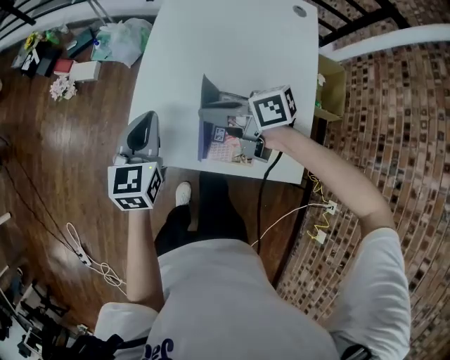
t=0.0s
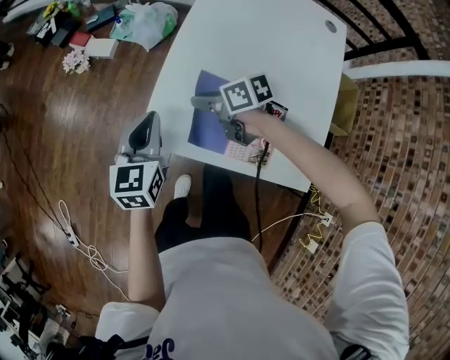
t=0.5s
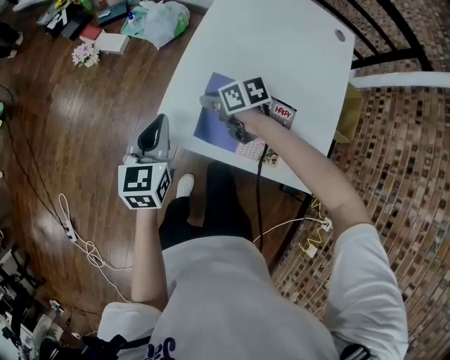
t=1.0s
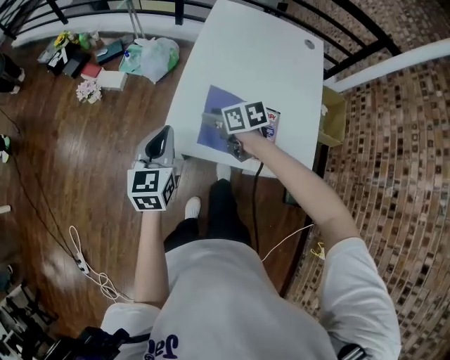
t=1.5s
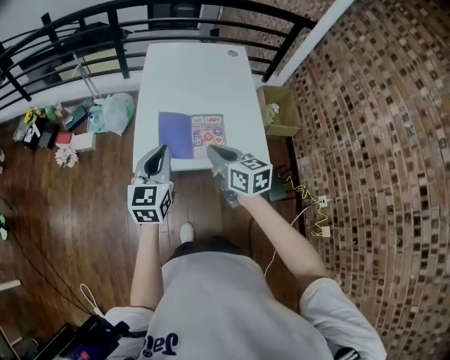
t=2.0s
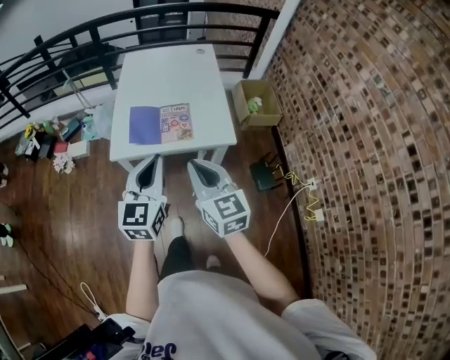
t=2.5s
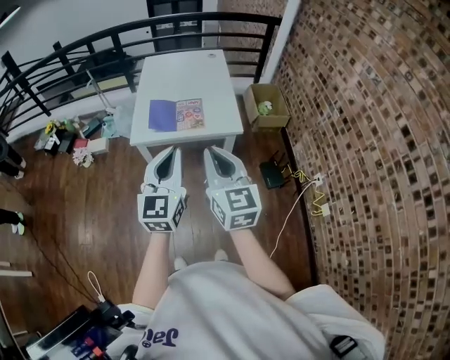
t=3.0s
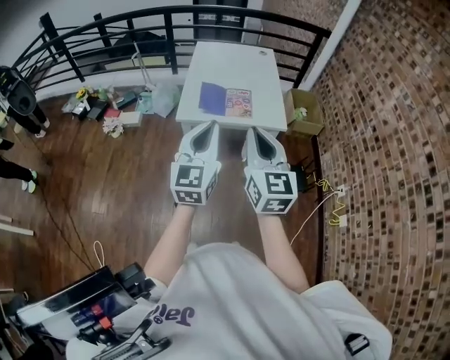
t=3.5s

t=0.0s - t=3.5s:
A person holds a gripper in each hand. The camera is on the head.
t=0.0s - t=2.0s: The left gripper ends up roughly 20 cm from where it was. The right gripper ends up approximately 20 cm from where it was, and rotates approximately 60 degrees.
t=2.0s - t=3.5s: The grippers both shift backward and upward by some 35 cm. The right gripper swivels approximately 40 degrees.

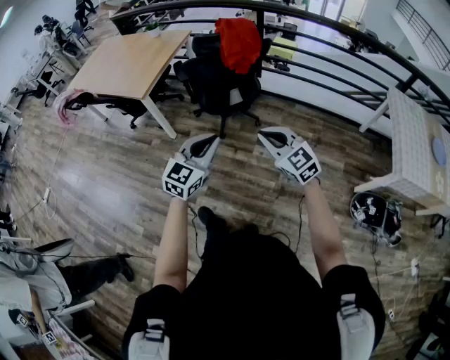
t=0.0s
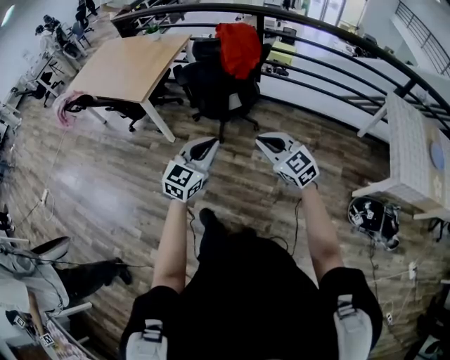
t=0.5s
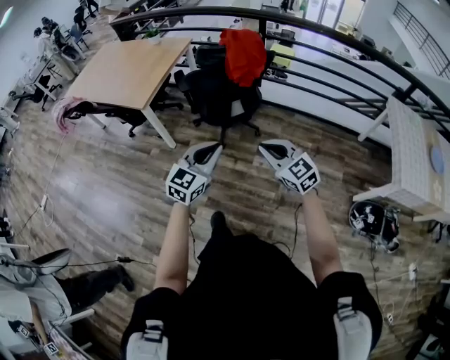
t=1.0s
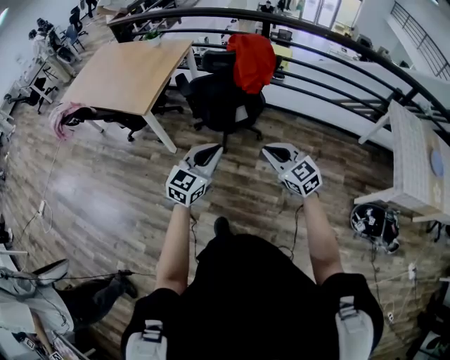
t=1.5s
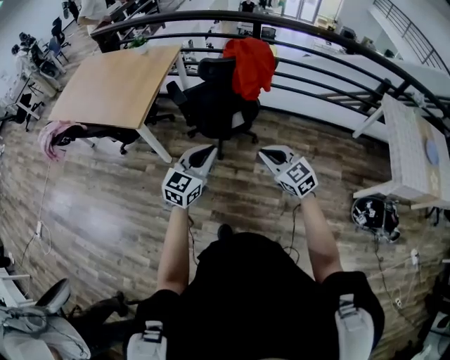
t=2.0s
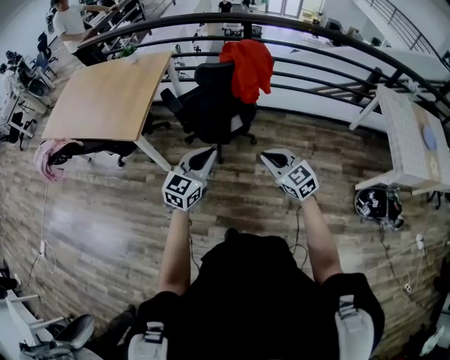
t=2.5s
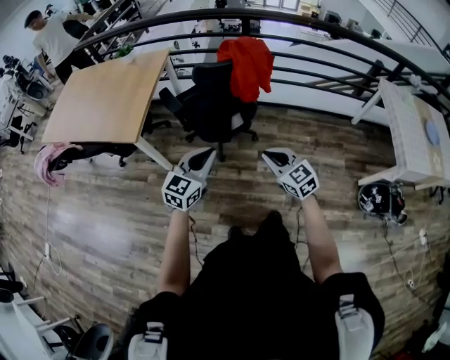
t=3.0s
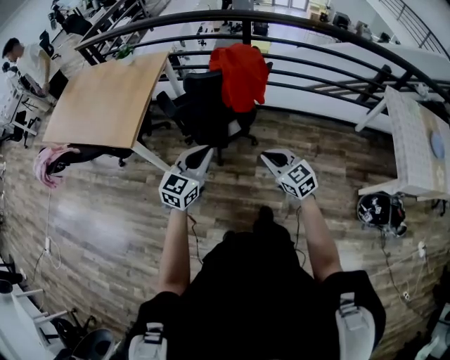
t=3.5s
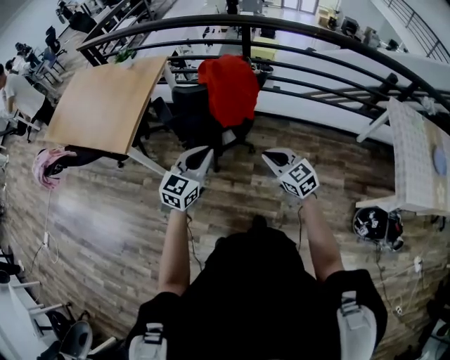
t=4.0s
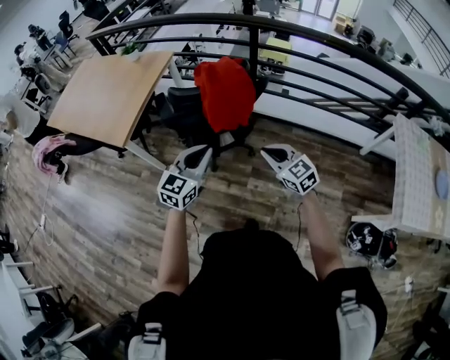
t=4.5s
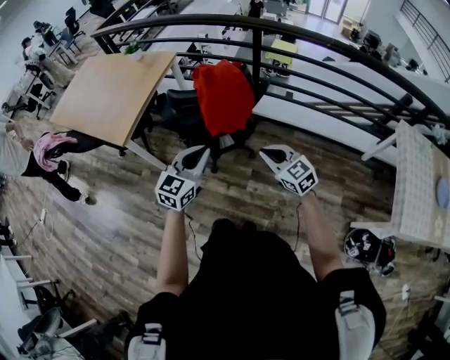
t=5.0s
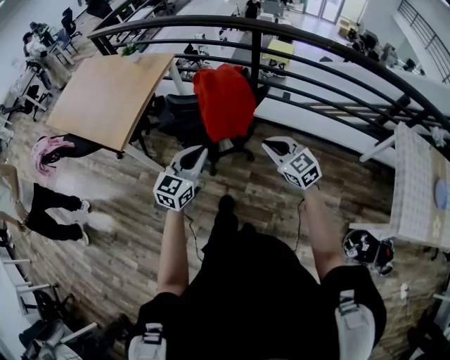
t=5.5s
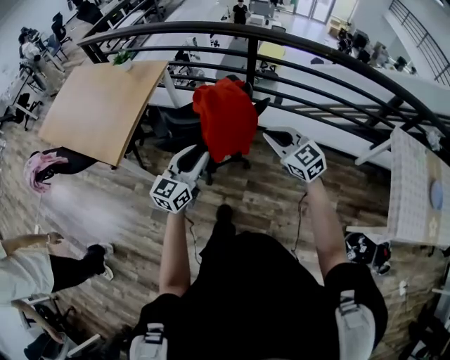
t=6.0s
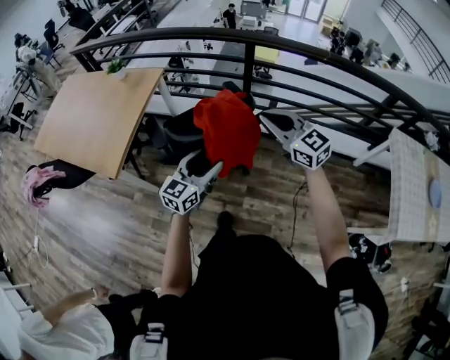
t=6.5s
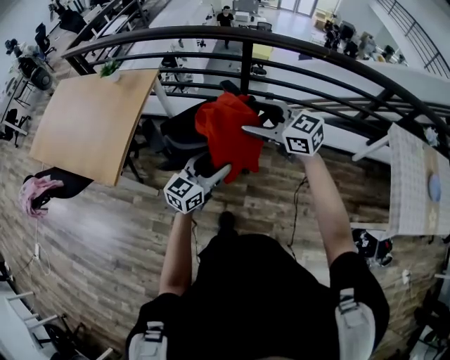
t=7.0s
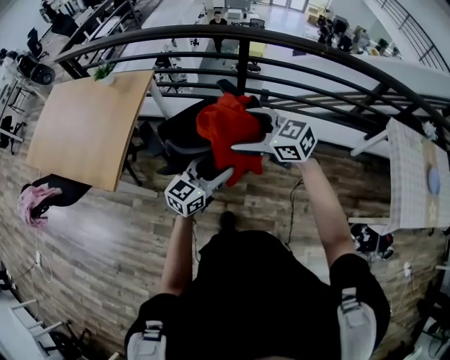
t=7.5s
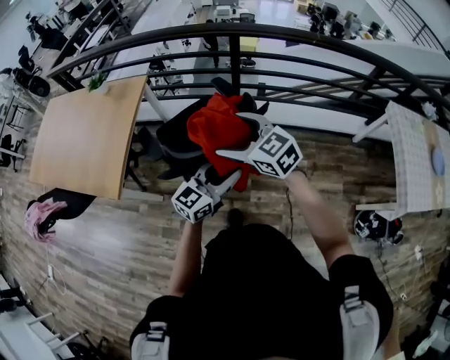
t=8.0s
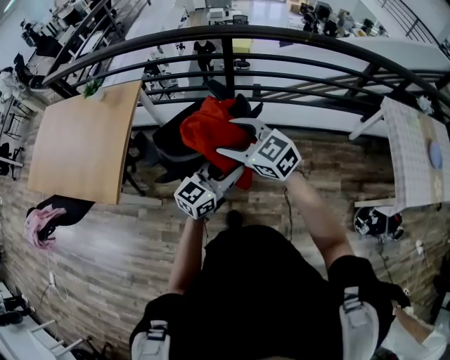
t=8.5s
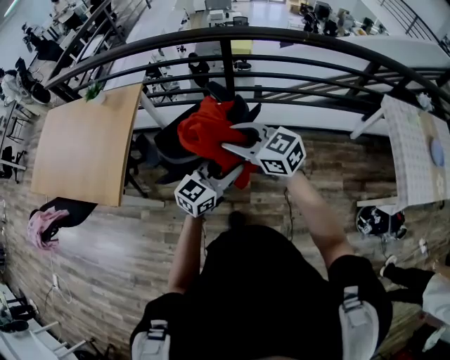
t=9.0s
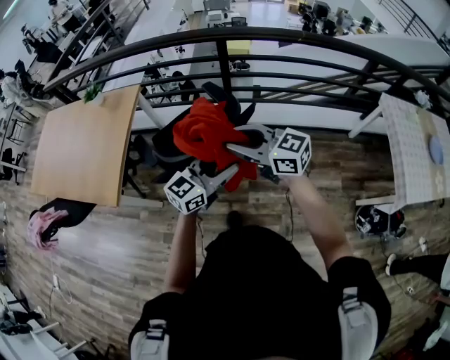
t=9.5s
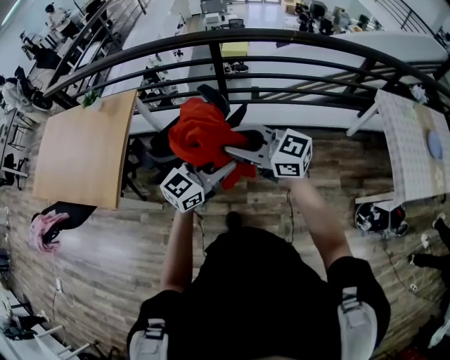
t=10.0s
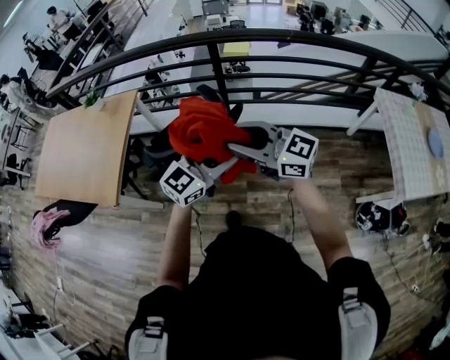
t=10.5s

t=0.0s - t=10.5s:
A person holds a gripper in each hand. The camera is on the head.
t=0.0s - t=2.0s: Both grippers travel together forward and to the left, approximately 20 cm.
t=2.0s - t=4.0s: The two grippers go about 20 cm forward and to the right.
t=4.0s - t=6.5s: The left gripper shifts some 15 cm forward, and opens its fingers; the right gripper shifts about 30 cm forward and upward.
t=6.5s - t=8.5s: The left gripper moves to the right, about 5 cm, turns by approximately 20 degrees, and closes its fingers, while the right gripper goes some 10 cm to the left, and opens up.
t=8.5s - t=10.5s: The right gripper heads to the right, upward and backward, covering some 15 cm, turns by some 30 degrees, and closes up; the left gripper heads upward and to the right, covering roughly 10 cm, and opens up.

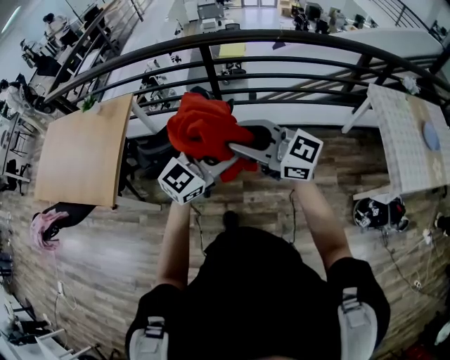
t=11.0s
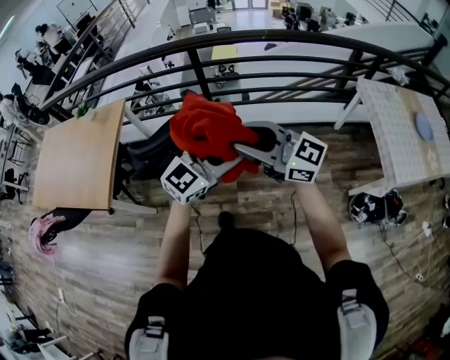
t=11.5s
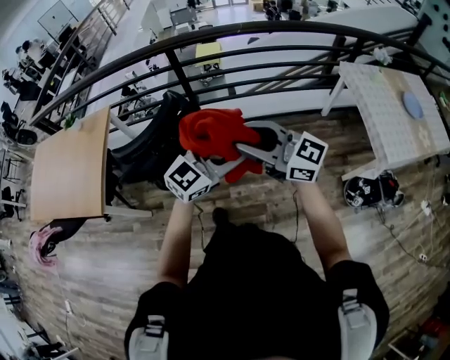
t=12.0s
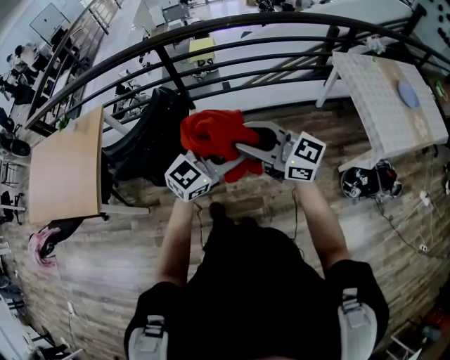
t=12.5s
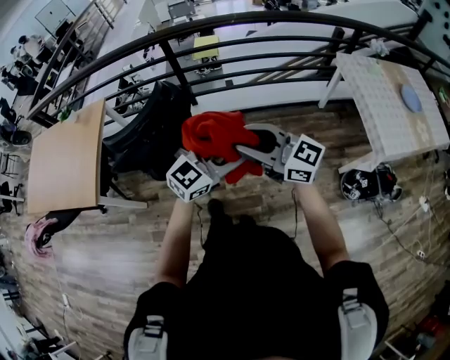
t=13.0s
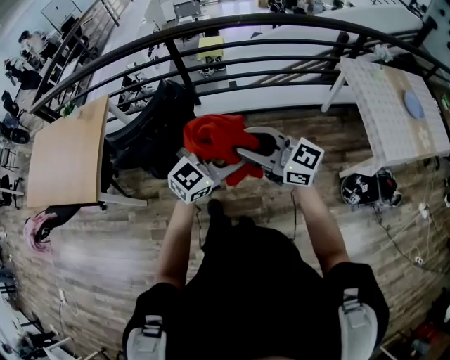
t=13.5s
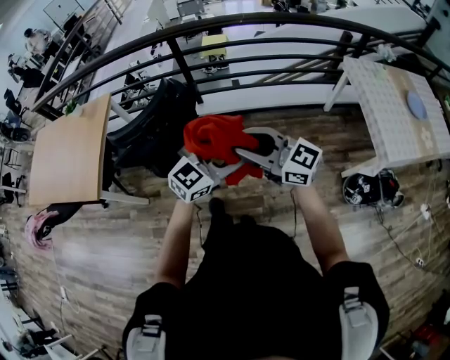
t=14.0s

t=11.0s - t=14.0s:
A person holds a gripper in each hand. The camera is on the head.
t=11.0s - t=12.5s: Both grippers move to the right and backward, some 20 cm.
t=12.5s - t=14.0s: There are only small adjustments of the grippers.

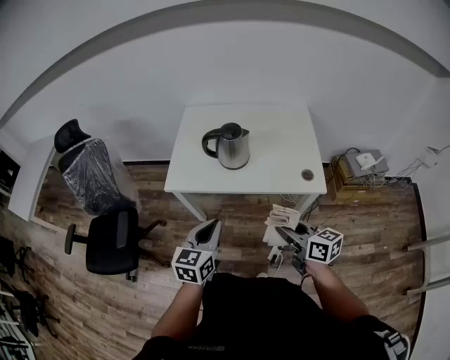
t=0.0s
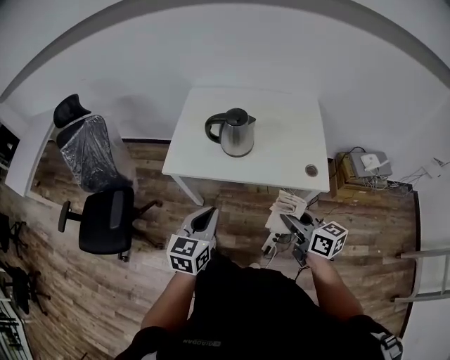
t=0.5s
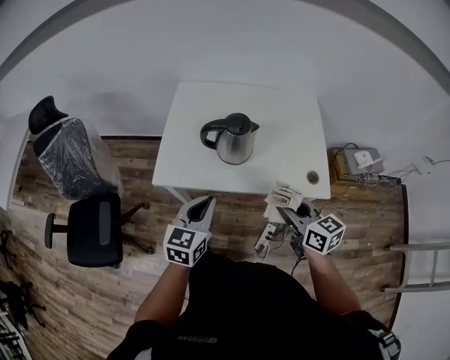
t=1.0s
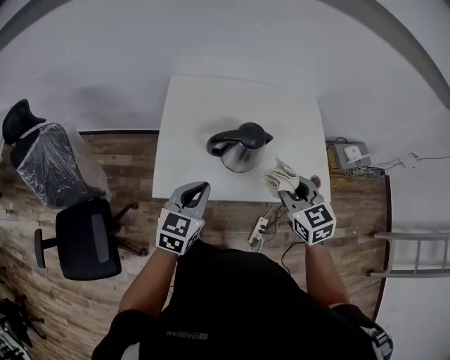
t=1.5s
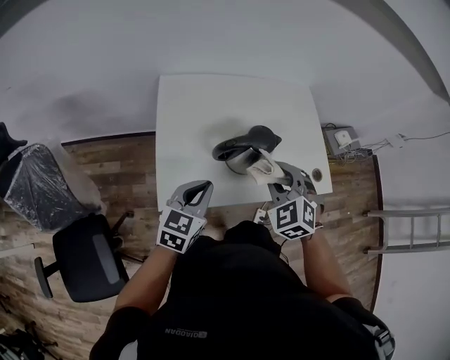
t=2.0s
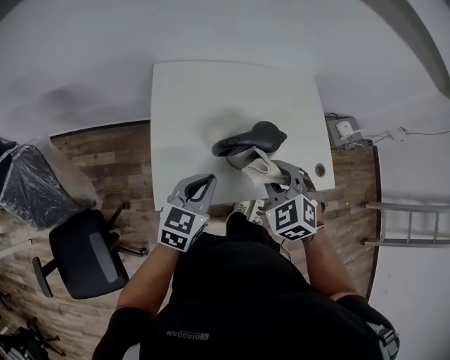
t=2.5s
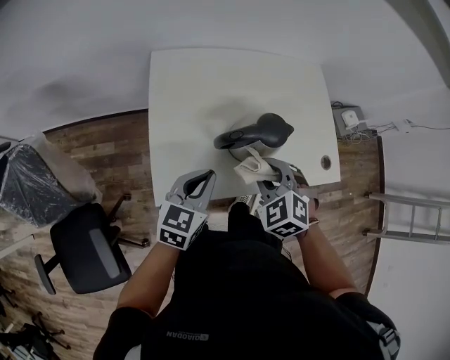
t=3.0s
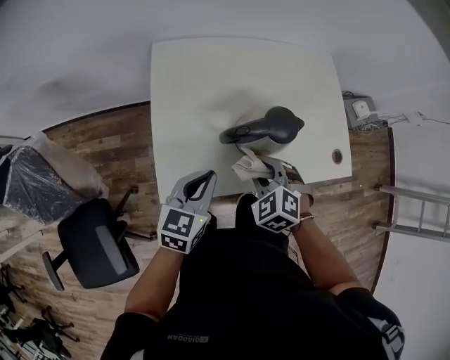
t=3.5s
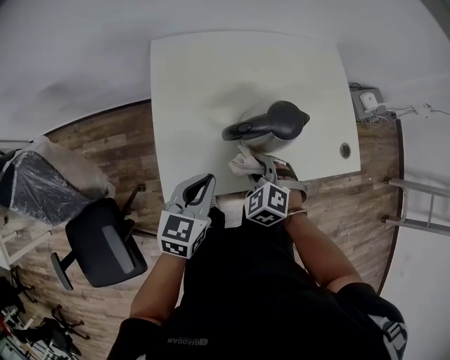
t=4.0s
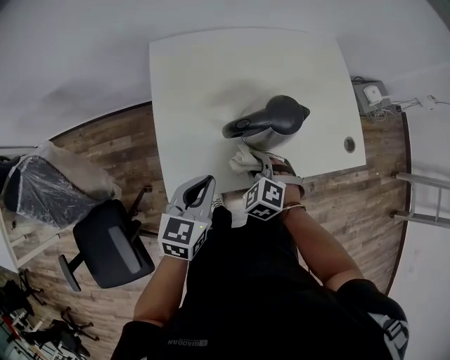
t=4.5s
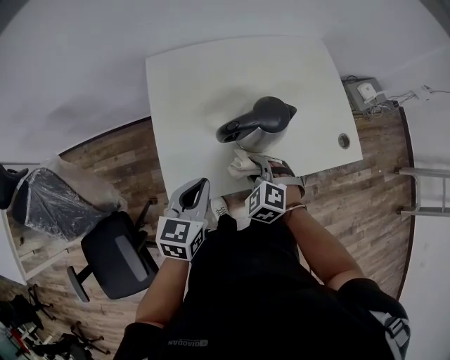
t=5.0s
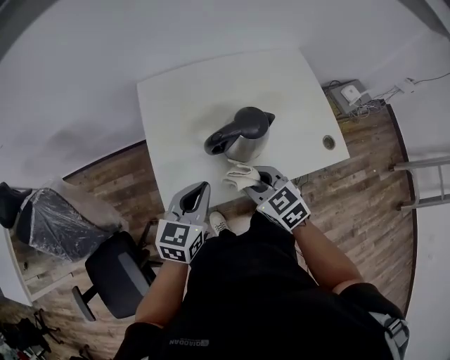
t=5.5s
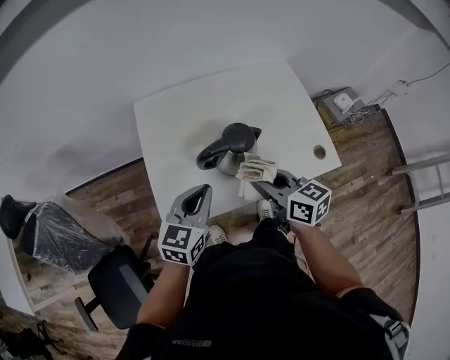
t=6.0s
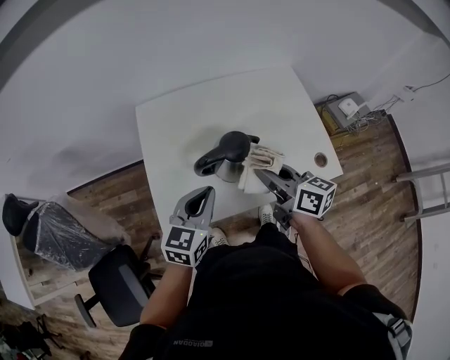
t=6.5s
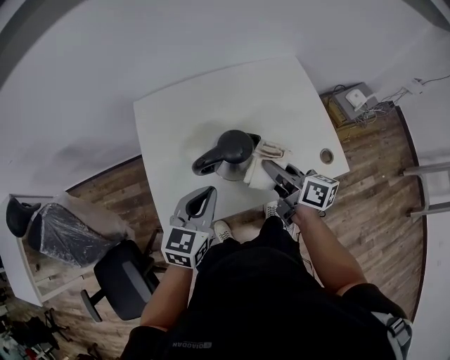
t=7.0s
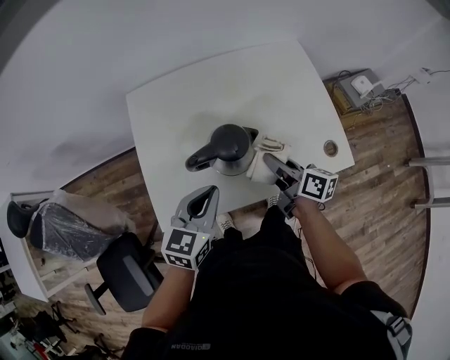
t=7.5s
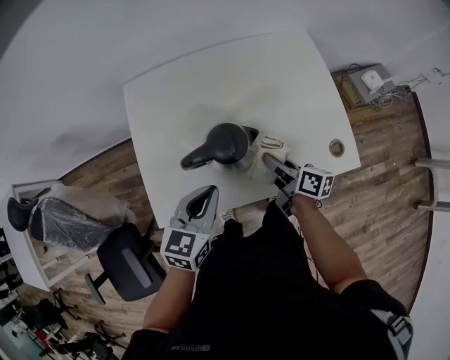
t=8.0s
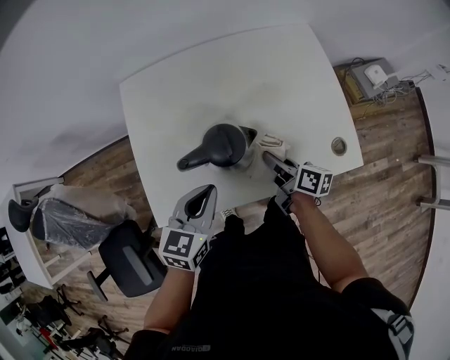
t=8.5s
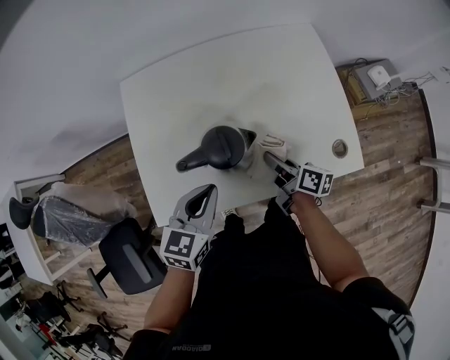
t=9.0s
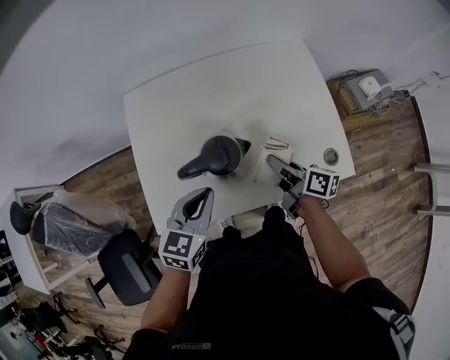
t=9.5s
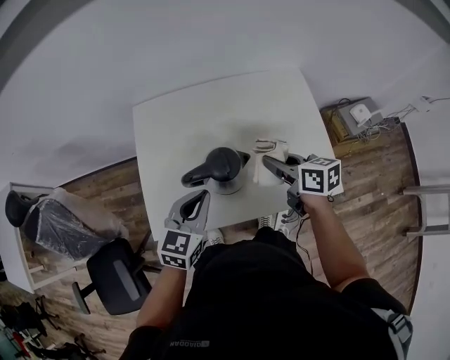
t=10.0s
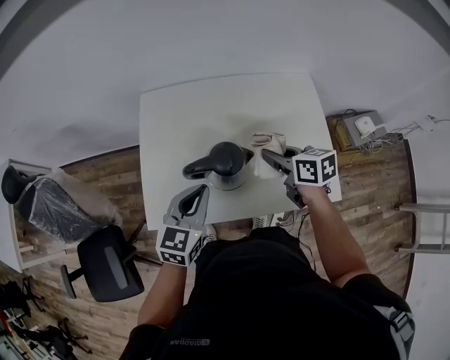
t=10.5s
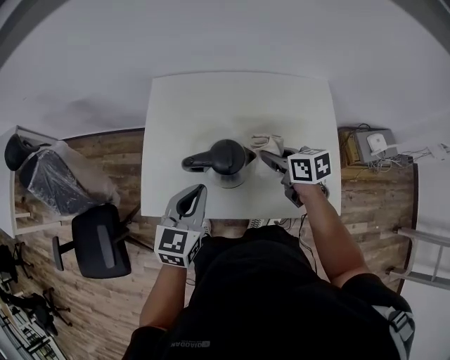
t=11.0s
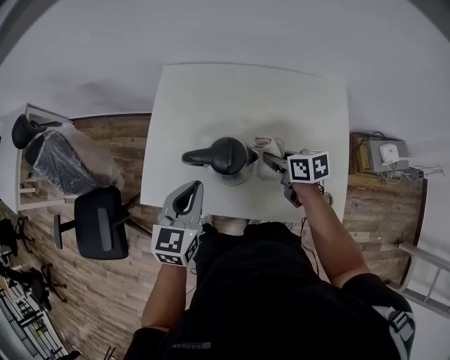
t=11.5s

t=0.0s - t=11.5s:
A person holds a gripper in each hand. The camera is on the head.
t=0.0s - t=2.0s: The left gripper changes place by roughly 30 cm, and changes its angle by about 20 degrees. Meanwhile the right gripper ends up roughly 35 cm from where it was, and swivels roughly 80 degrees.
t=2.0s - t=4.0s: The left gripper moves downward, roughly 5 cm; the right gripper travels downward by approximately 20 cm.
t=4.0s - t=6.0s: The right gripper shifts about 20 cm upward and to the right, and points its fingers roughly 40 degrees further upward, while the left gripper travels upward and to the right by approximately 10 cm.
t=6.0s - t=7.5s: The right gripper travels downward, to the right and forward by roughly 15 cm, and swivels roughly 30 degrees; the left gripper is displaced to the right by roughly 5 cm.
t=9.5s - t=11.5s: The right gripper travels upward and back again, roughly 10 cm each way, and rotates some 50 degrees. Meanwhile the left gripper changes its angle by some 30 degrees.
